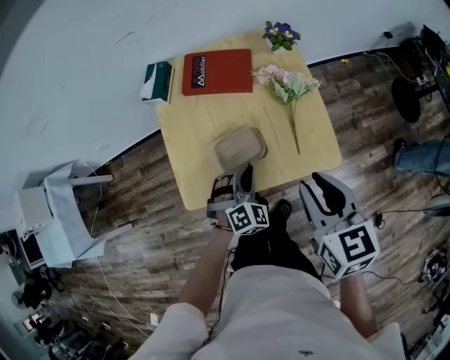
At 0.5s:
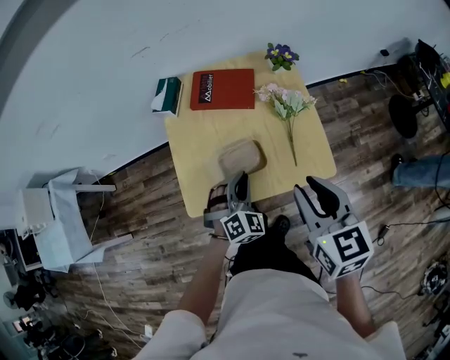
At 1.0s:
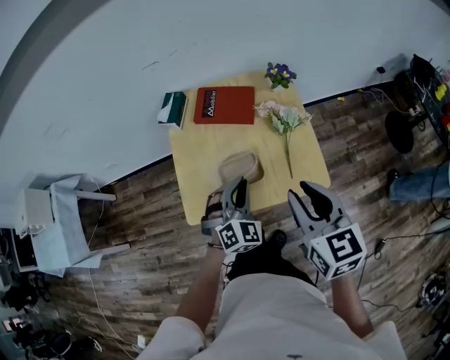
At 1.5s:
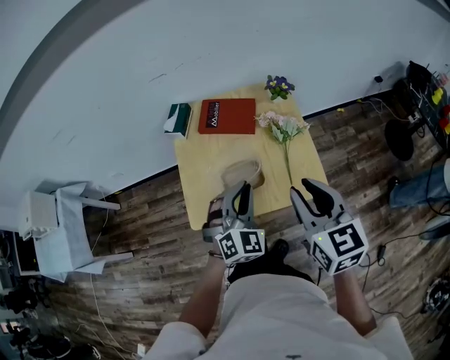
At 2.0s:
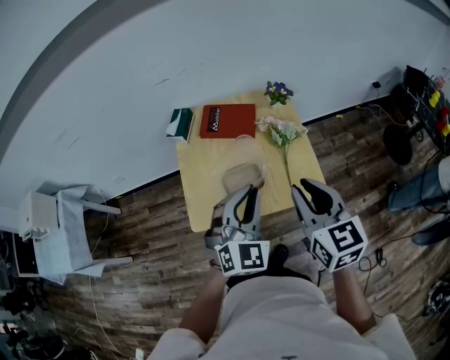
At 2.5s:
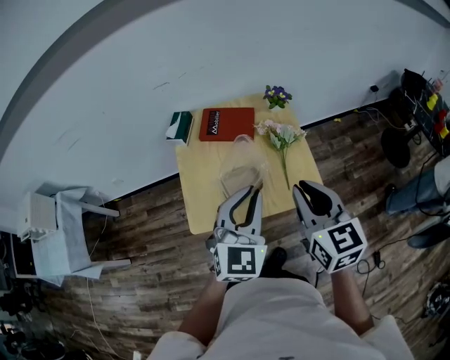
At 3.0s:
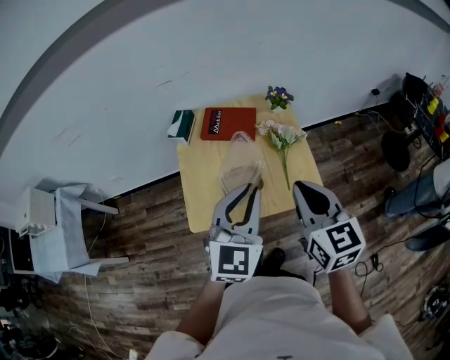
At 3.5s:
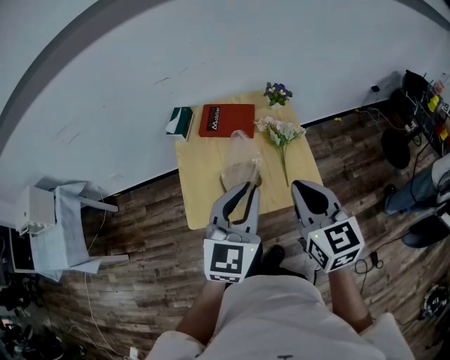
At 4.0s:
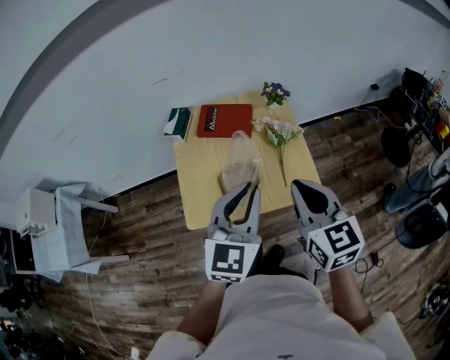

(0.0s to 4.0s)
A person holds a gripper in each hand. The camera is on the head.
0.0s - 2.0s: The left gripper heads upward, covering about 25 cm, and turns by roughly 30 degrees; the right gripper travels upward by roughly 10 cm.
2.0s - 4.0s: The left gripper moves upward, roughly 5 cm, and swivels roughly 30 degrees.

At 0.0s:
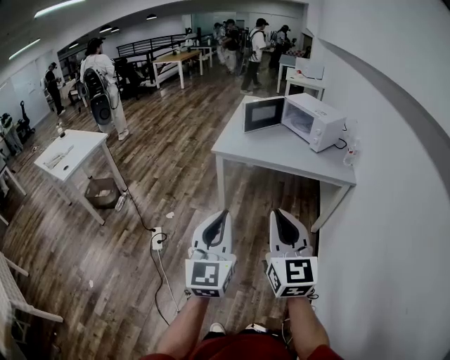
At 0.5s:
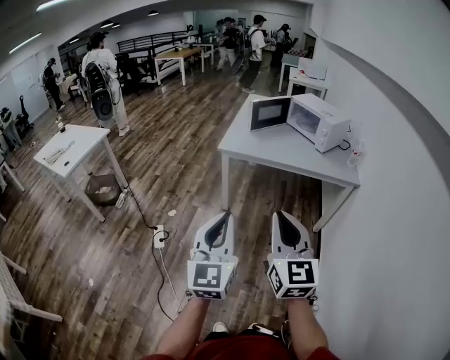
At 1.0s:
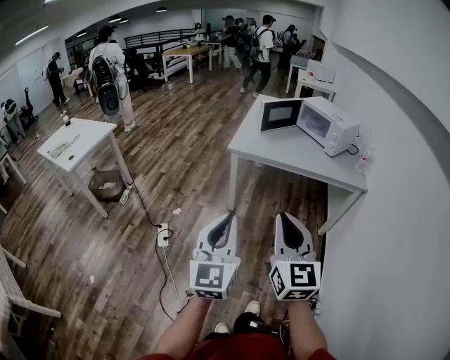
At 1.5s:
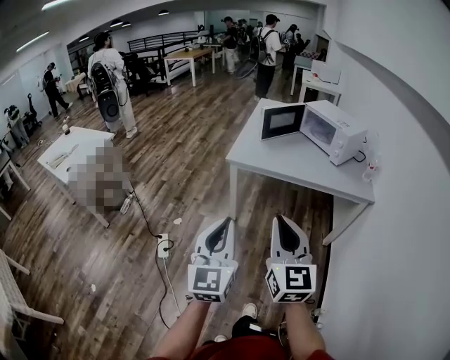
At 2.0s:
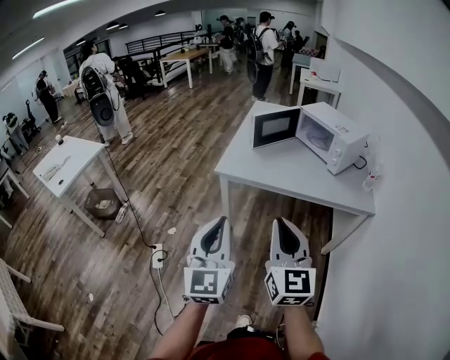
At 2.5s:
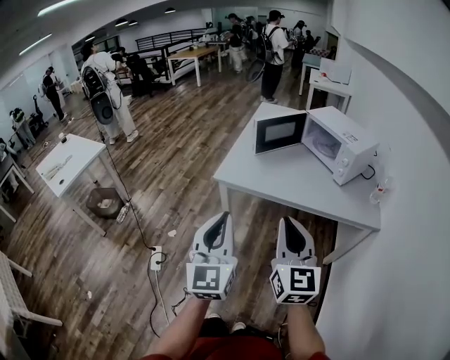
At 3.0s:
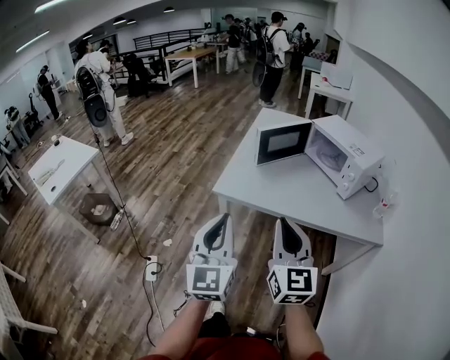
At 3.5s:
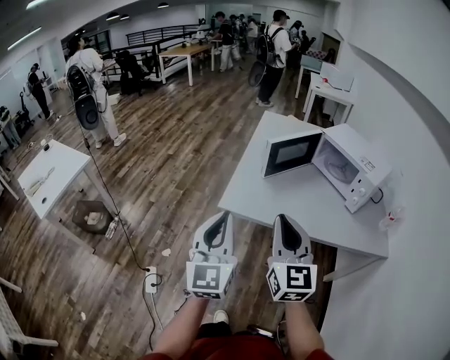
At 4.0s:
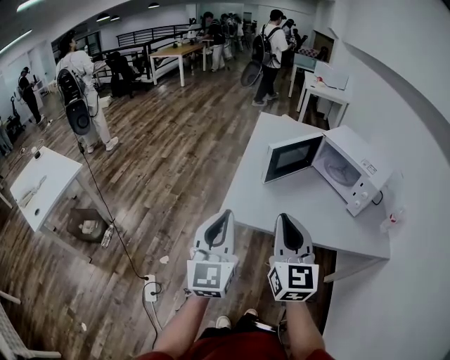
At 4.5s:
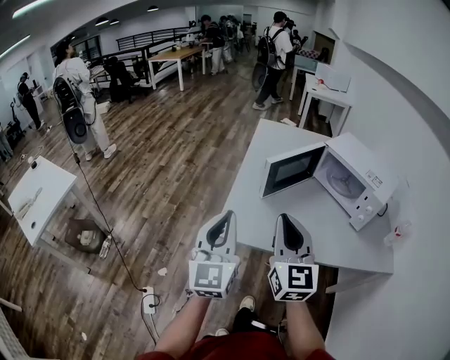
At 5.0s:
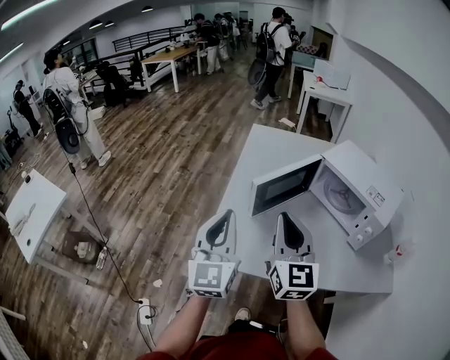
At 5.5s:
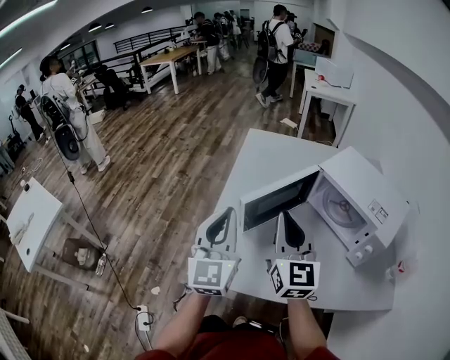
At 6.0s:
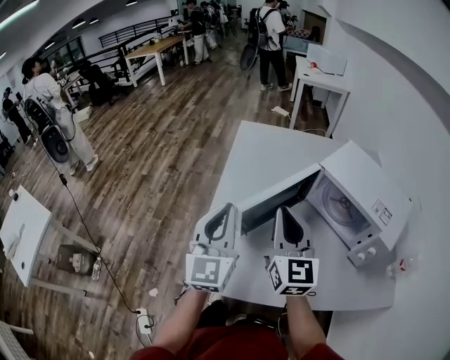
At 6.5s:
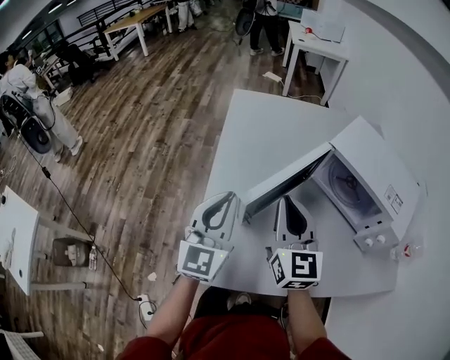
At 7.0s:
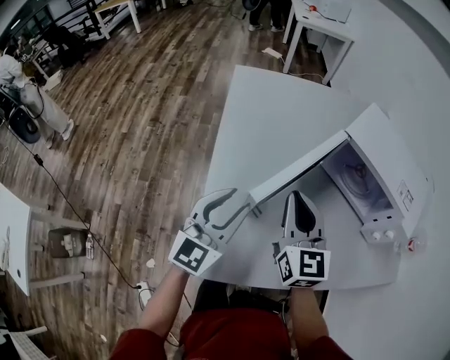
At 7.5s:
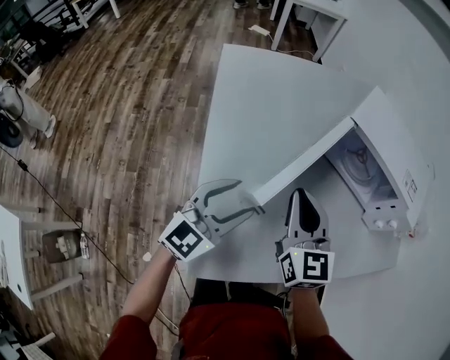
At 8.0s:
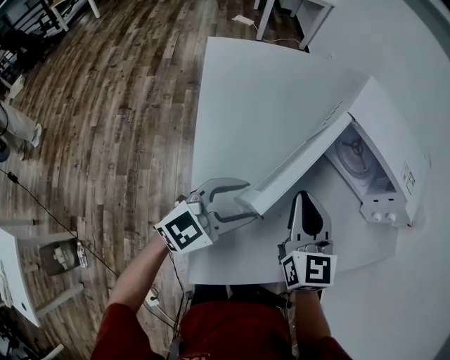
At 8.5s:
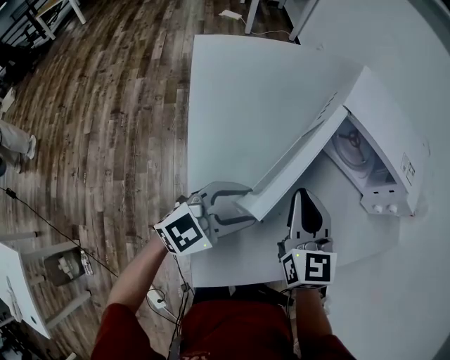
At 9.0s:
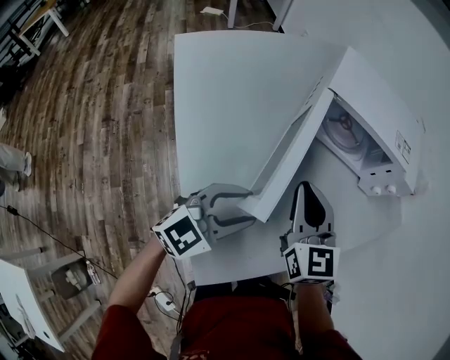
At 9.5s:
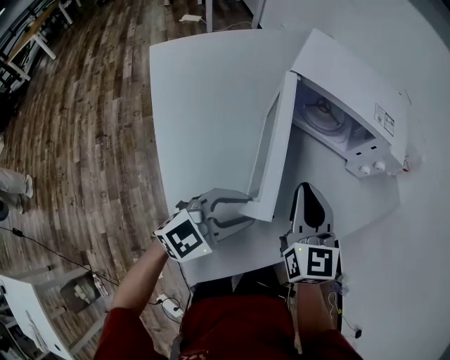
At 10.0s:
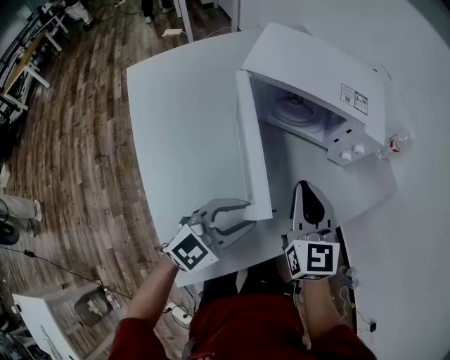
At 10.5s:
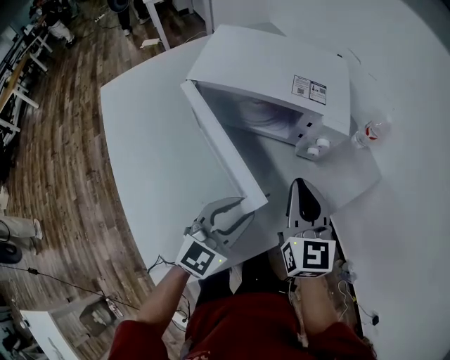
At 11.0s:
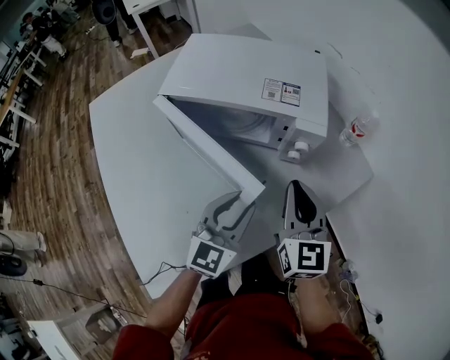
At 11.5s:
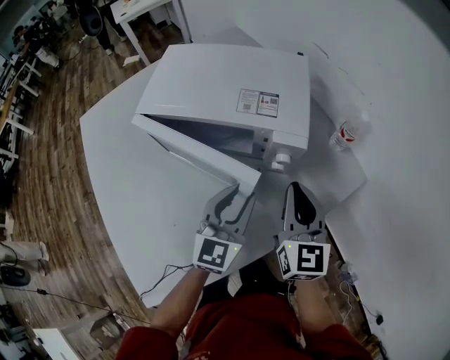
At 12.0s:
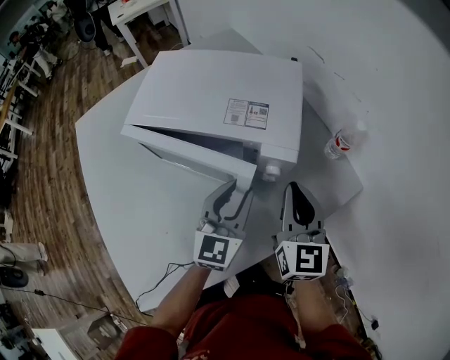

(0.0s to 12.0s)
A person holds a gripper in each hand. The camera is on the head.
0.0s - 2.0s: Both grippers travel together forward, roughly 20 cm.
2.0s - 4.0s: Both grippers travel together forward, some 35 cm.
4.0s - 6.0s: The two grippers go some 35 cm forward.
6.0s - 8.0s: The grippers both shift downward by roughly 15 cm. The left gripper changes its angle by approximately 70 degrees, and opens up; the right gripper changes its angle by about 20 degrees.
8.0s - 10.0s: The grippers both shift to the right by roughly 20 cm. The left gripper closes up.
10.0s - 12.0s: The right gripper shifts approximately 25 cm to the right and forward. Meanwhile the left gripper heads forward and to the right, covering some 30 cm, and changes its angle by about 30 degrees.

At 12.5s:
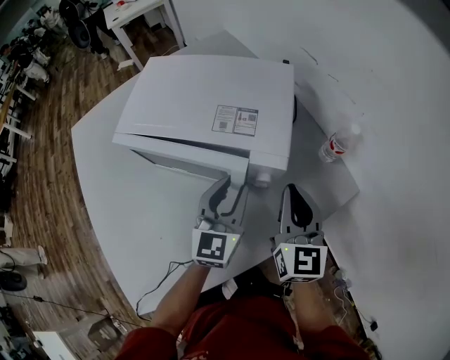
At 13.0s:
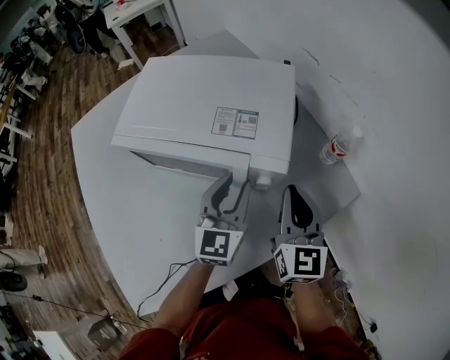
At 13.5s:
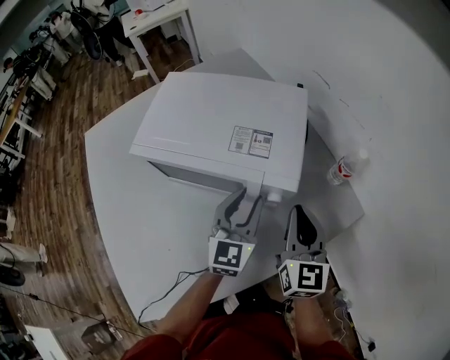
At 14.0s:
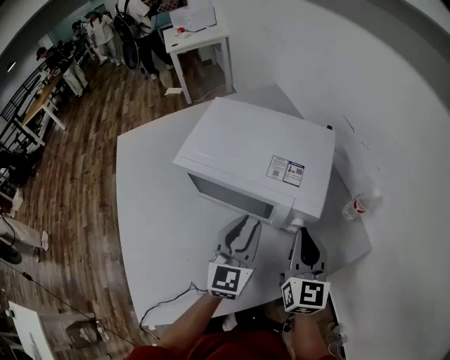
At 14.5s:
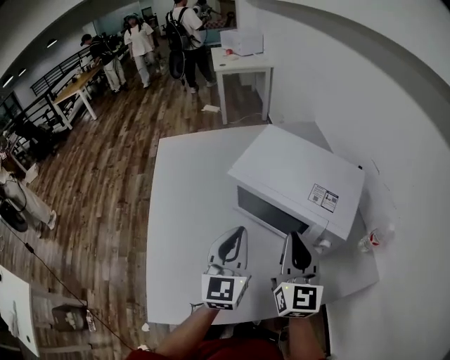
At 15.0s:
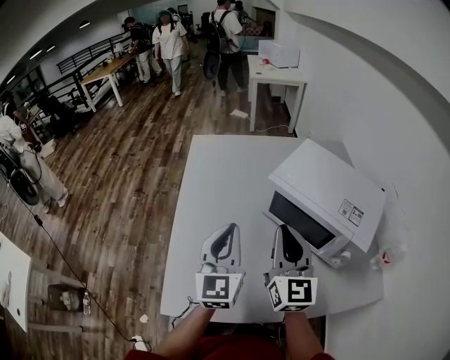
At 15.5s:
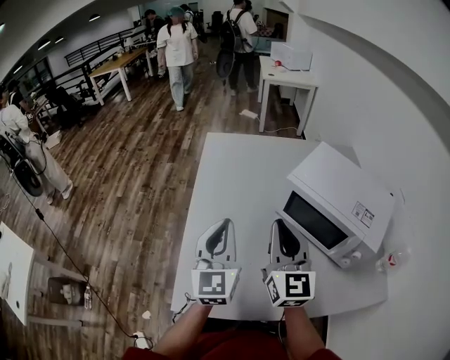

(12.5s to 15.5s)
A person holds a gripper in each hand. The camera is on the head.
12.5s - 14.0s: Both grippers move to the left, roughly 5 cm.
14.0s - 15.5s: The left gripper shifts by about 35 cm, rotates some 40 degrees, and closes its fingers. The right gripper shifts by roughly 35 cm, and swivels about 30 degrees.

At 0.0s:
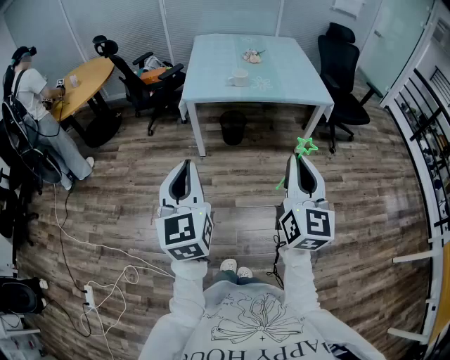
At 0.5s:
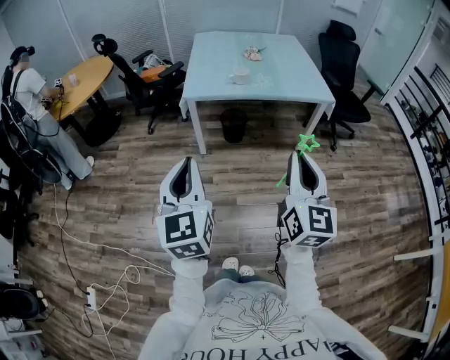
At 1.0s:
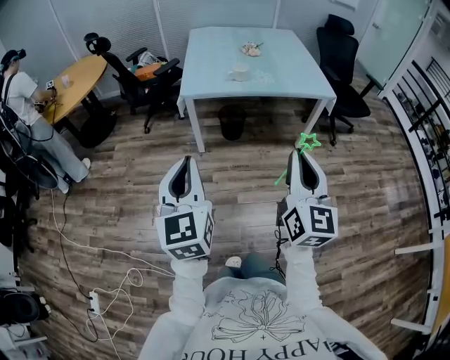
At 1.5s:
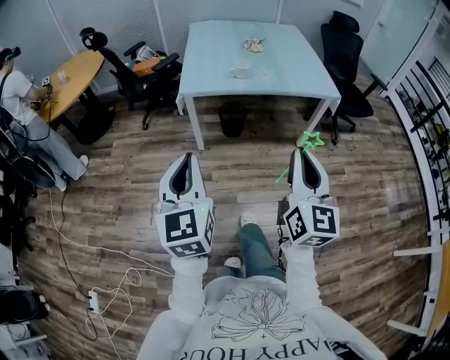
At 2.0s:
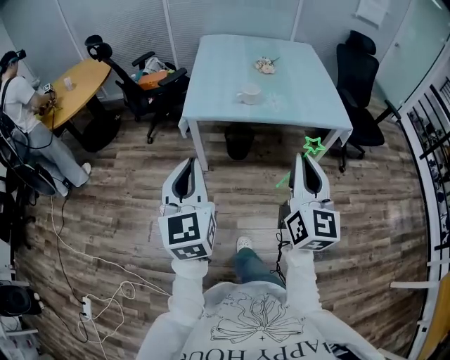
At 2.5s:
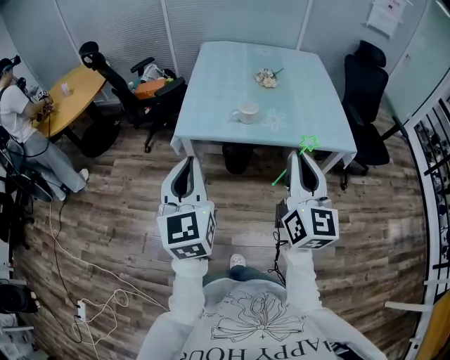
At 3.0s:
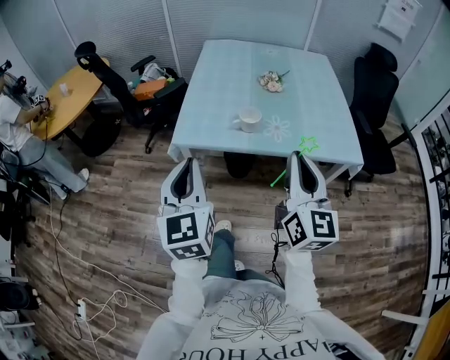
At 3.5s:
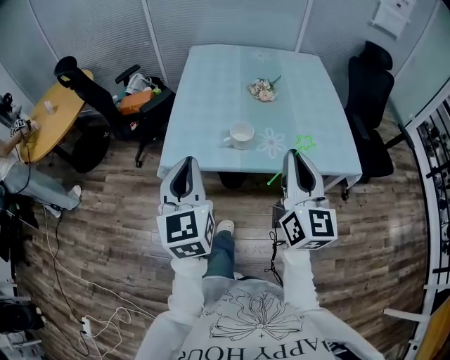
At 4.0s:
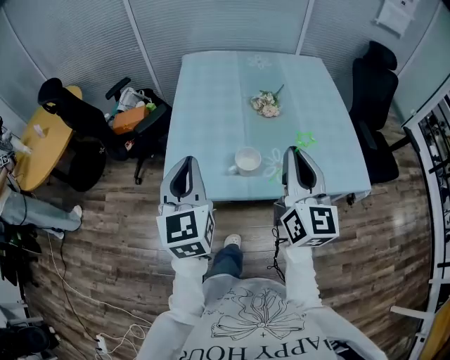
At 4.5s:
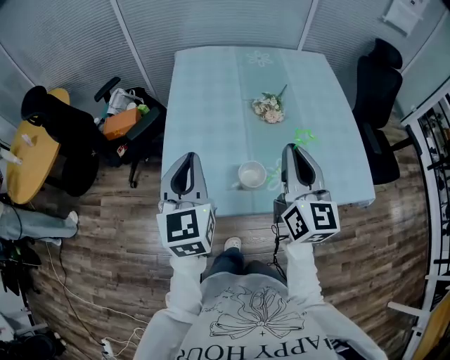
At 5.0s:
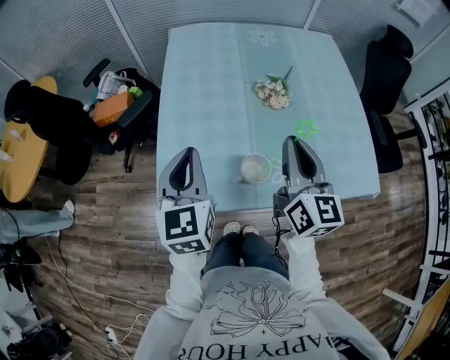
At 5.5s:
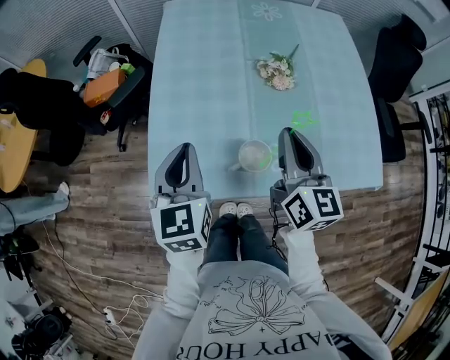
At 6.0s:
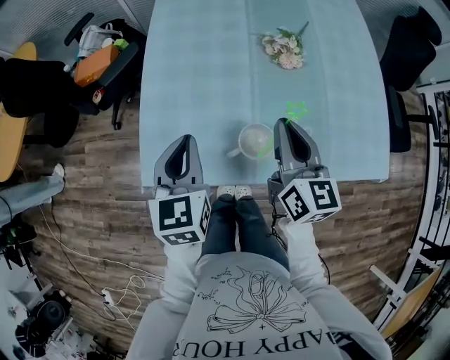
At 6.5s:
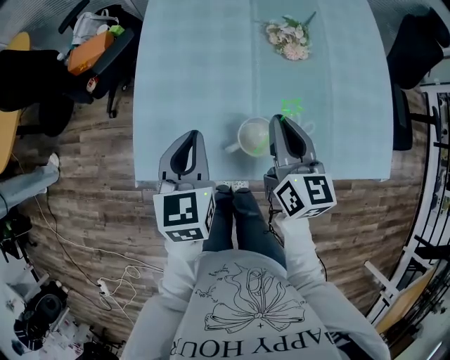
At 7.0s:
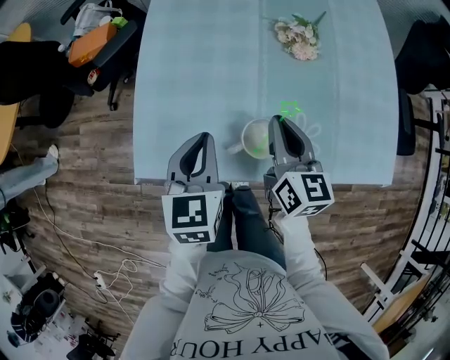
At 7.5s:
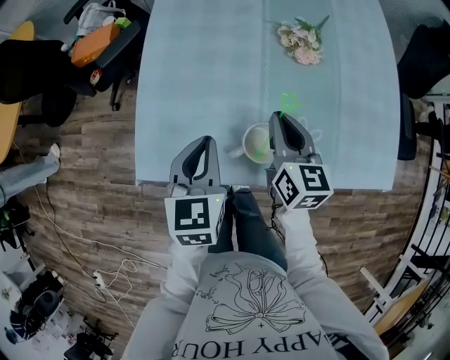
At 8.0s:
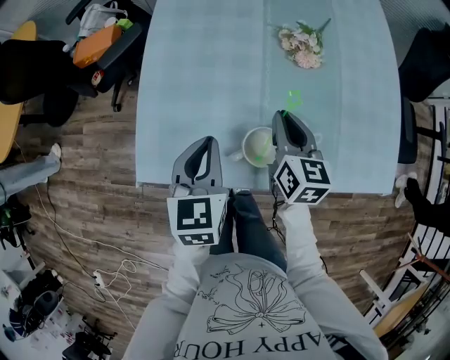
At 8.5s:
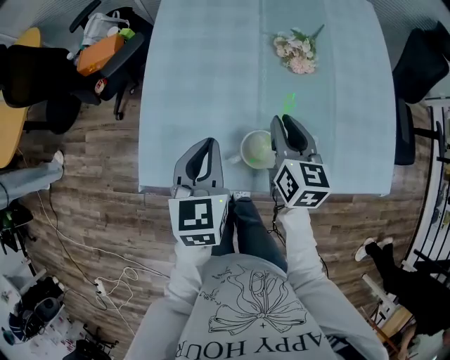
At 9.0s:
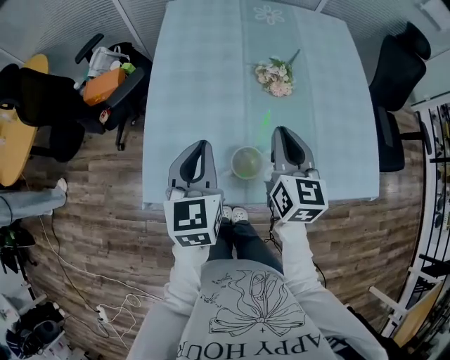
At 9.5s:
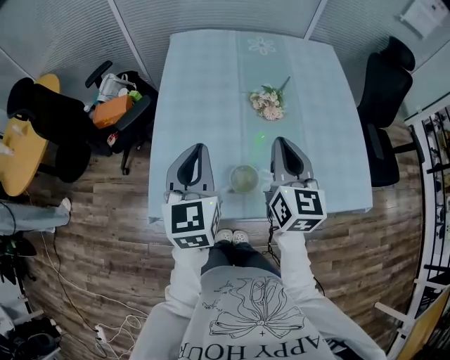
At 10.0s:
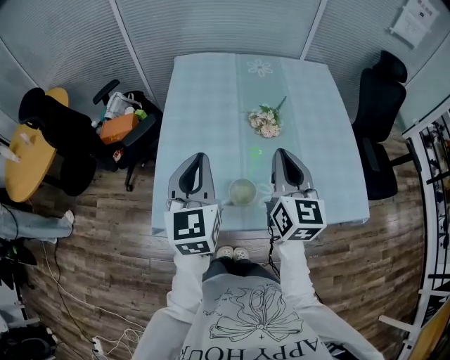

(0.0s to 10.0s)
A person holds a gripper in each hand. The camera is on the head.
0.0s - 2.0s: The grippers both shift forward by approximately 25 cm.
2.0s - 4.0s: The pair of grippers is taken forward, roughly 50 cm.
4.0s - 6.0s: Both grippers travel together downward and forward, about 25 cm. The right gripper swivels some 20 degrees; the left gripper changes its angle by some 20 degrees.
6.0s - 8.0s: The right gripper moves downward and forward, about 10 cm, while the left gripper is displaced downward by approximately 5 cm.
8.0s - 10.0s: Both grippers move upward, roughly 20 cm. The right gripper rotates some 20 degrees; the left gripper rotates roughly 30 degrees.
